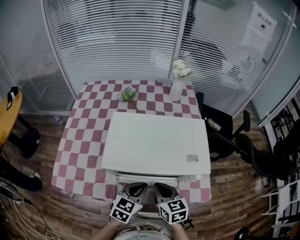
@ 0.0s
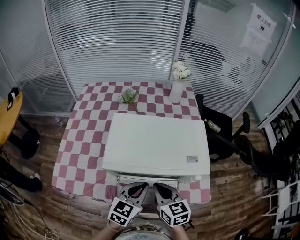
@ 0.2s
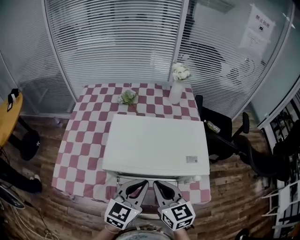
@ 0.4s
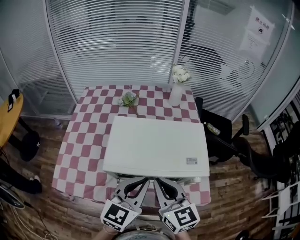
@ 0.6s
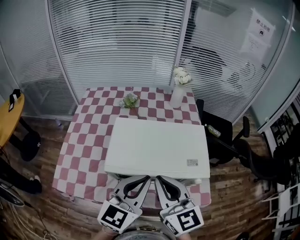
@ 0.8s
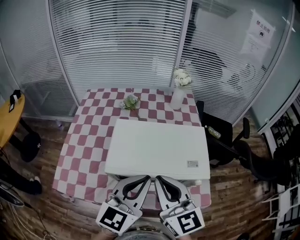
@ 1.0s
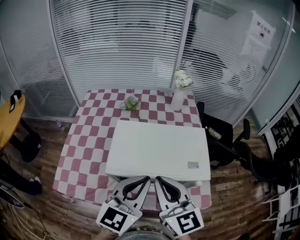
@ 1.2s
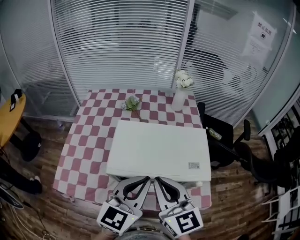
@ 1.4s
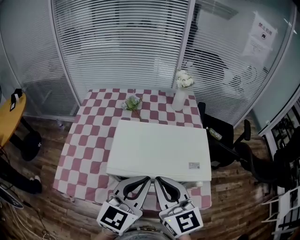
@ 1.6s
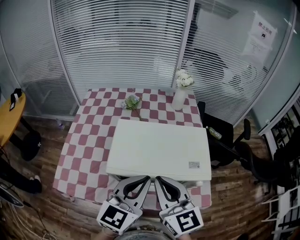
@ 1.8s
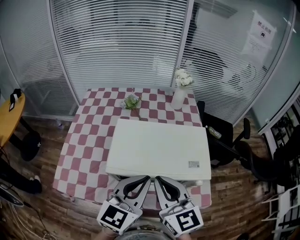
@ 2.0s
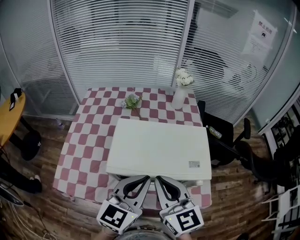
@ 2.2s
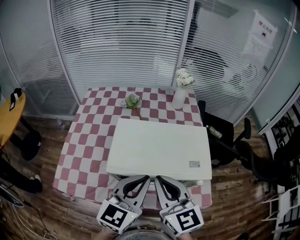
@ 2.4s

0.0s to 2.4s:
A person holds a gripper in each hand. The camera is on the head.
0.0s to 1.2s: Both grippers move upward, about 20 cm. The left gripper changes its angle by some 20 degrees. Meanwhile the right gripper rotates some 30 degrees.
1.2s to 2.4s: The grippers make only small movements.

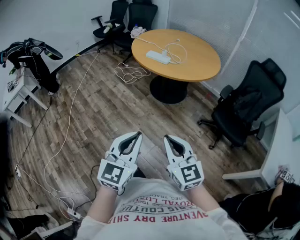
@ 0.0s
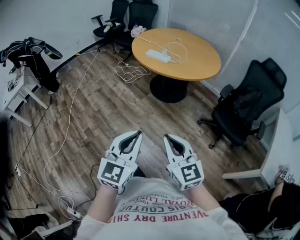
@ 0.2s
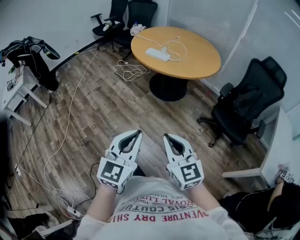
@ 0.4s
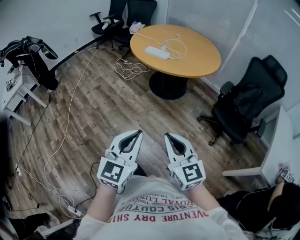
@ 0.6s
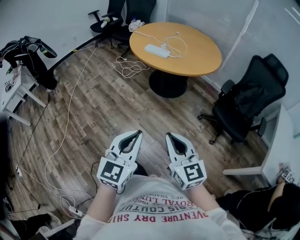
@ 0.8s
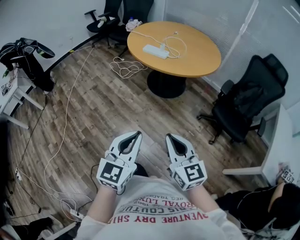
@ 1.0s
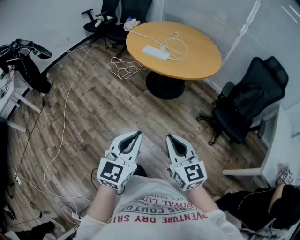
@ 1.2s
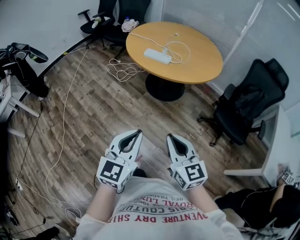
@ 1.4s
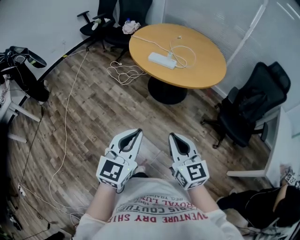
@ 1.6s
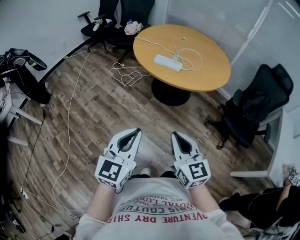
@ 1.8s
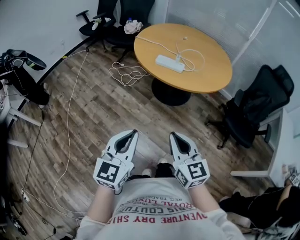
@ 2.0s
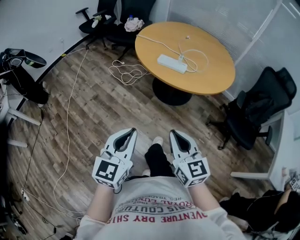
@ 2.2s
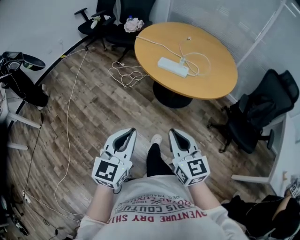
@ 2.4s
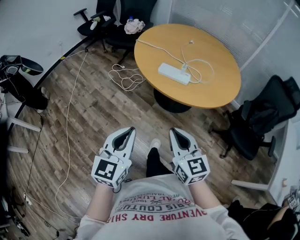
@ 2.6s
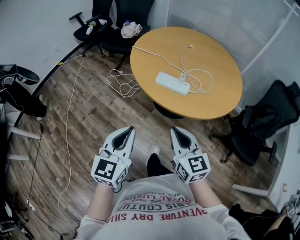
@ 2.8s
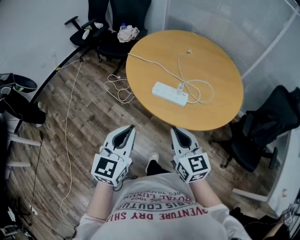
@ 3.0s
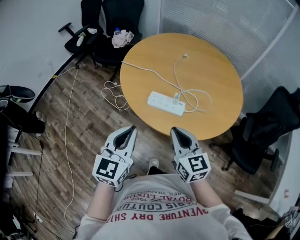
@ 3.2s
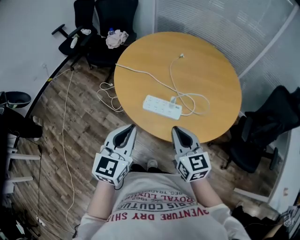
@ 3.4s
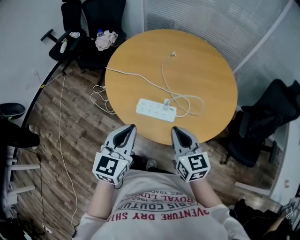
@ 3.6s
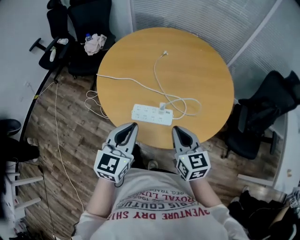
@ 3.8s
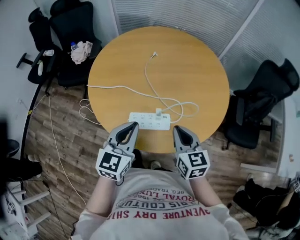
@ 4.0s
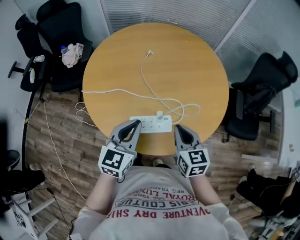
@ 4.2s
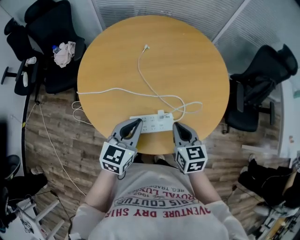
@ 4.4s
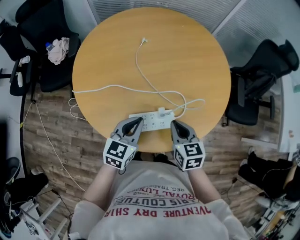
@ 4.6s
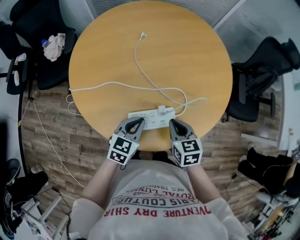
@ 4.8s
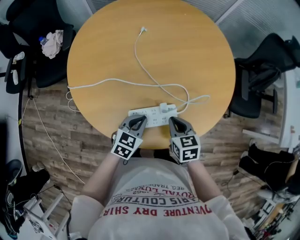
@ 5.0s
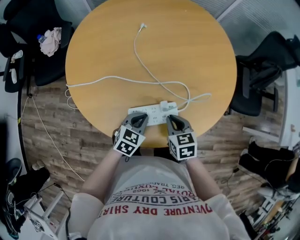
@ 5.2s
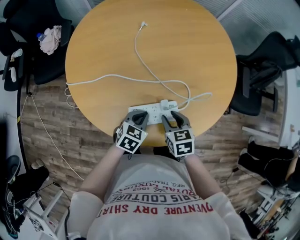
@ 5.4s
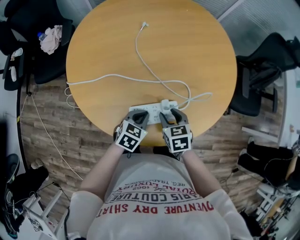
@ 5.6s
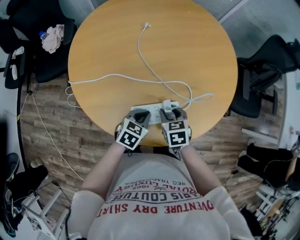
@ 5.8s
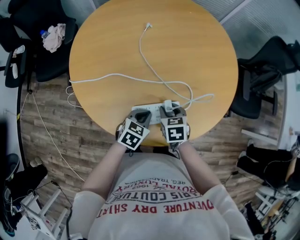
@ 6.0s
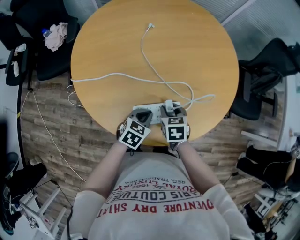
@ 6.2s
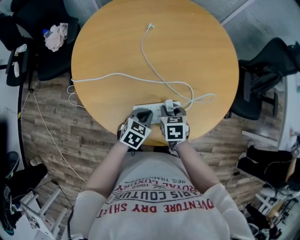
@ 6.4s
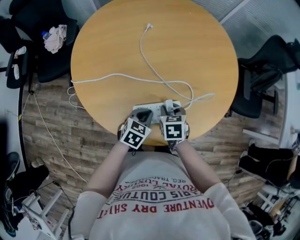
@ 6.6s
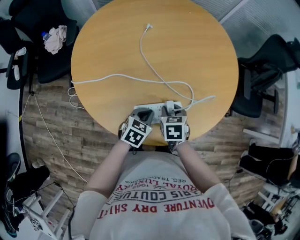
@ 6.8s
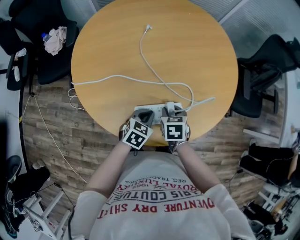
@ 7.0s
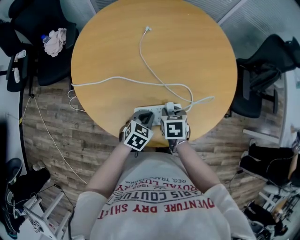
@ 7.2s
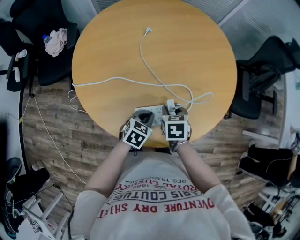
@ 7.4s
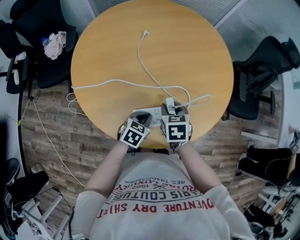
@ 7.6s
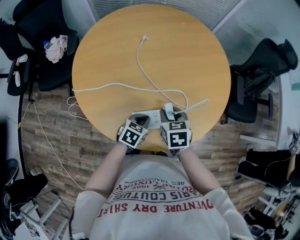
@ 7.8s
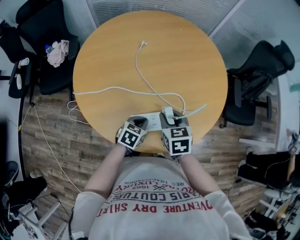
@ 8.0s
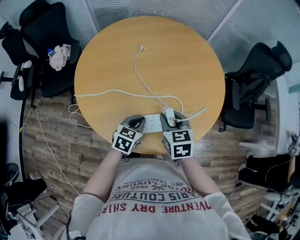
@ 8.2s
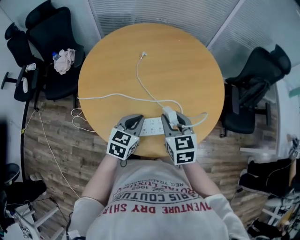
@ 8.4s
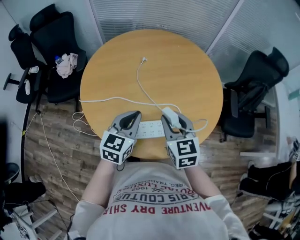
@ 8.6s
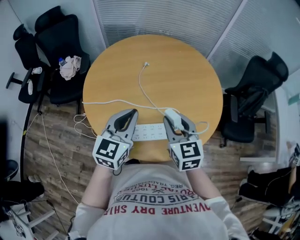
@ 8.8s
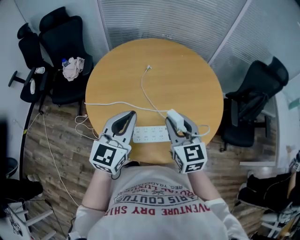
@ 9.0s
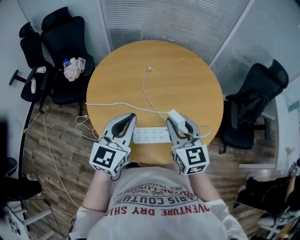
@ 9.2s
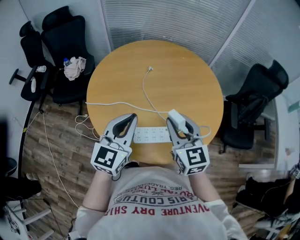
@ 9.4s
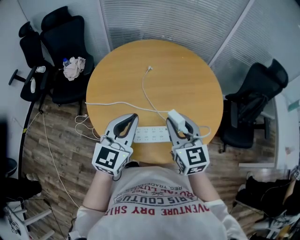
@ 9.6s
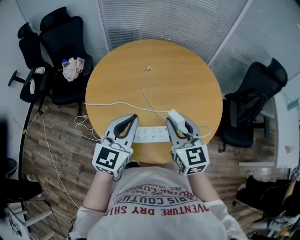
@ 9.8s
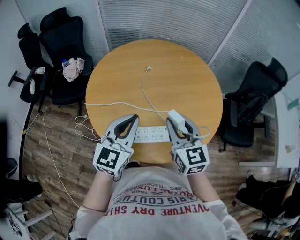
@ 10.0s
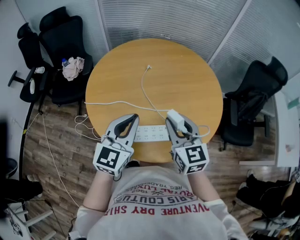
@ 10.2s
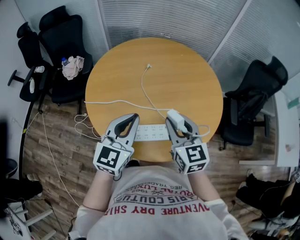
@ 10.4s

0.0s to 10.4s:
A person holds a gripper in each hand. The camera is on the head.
0.0s to 1.4s: The two grippers go about 15 cm forward and to the left.
1.4s to 3.0s: The two grippers travel together, forward, roughly 40 cm.
3.0s to 4.4s: The right gripper shifts by about 25 cm, and changes its angle by roughly 40 degrees, while the left gripper shifts by about 35 cm, and turns by about 40 degrees.
4.4s to 6.0s: Both grippers move downward, roughly 15 cm. The left gripper swivels about 30 degrees, while the right gripper swivels some 20 degrees, and opens up.
6.0s to 7.4s: The grippers move only a little.
7.4s to 9.0s: The two grippers go roughly 30 cm upward. The left gripper angles its fingers upward, by roughly 40 degrees; the right gripper tips its fingers upward by roughly 40 degrees.
9.0s to 10.4s: The grippers move only a little.

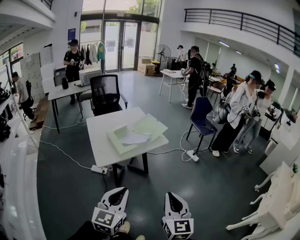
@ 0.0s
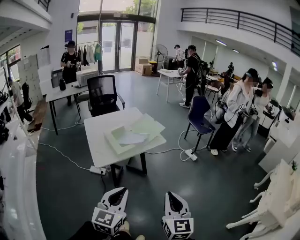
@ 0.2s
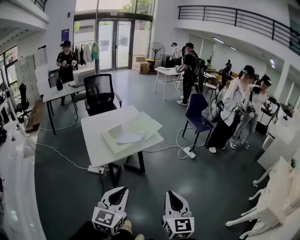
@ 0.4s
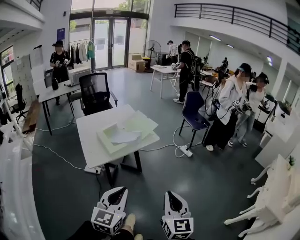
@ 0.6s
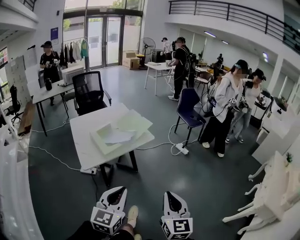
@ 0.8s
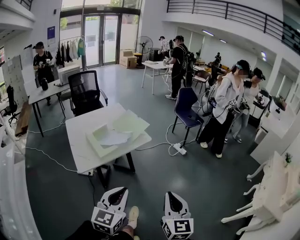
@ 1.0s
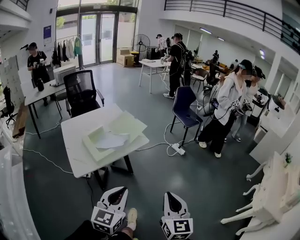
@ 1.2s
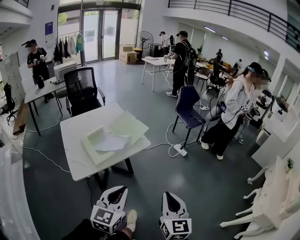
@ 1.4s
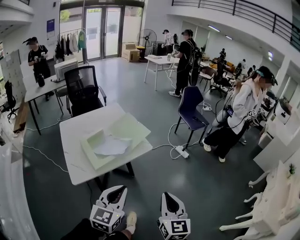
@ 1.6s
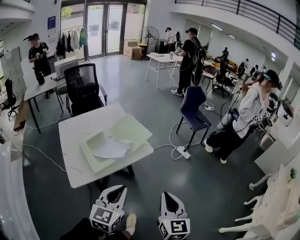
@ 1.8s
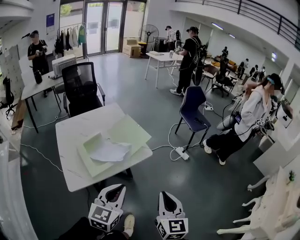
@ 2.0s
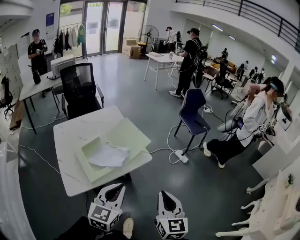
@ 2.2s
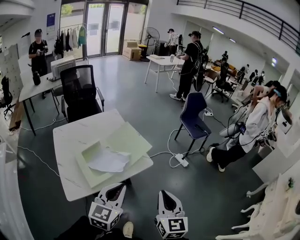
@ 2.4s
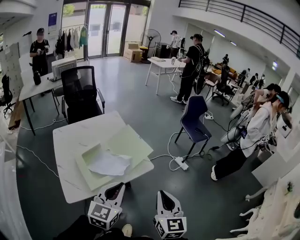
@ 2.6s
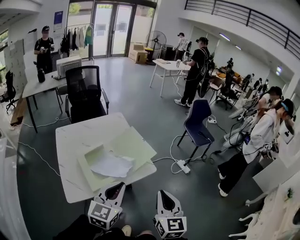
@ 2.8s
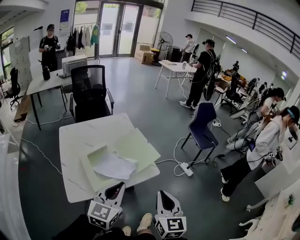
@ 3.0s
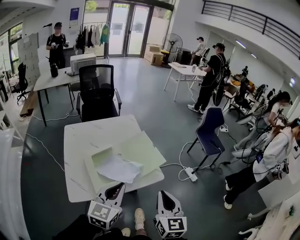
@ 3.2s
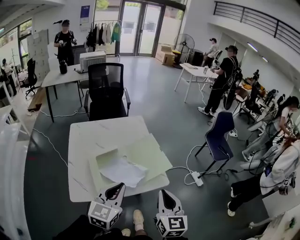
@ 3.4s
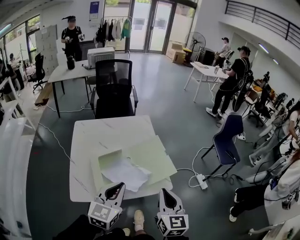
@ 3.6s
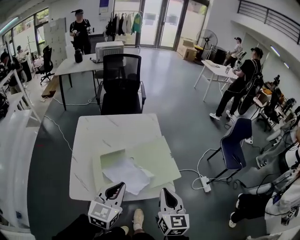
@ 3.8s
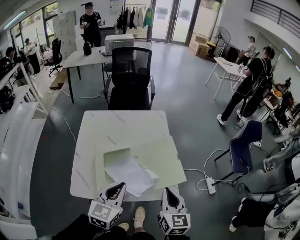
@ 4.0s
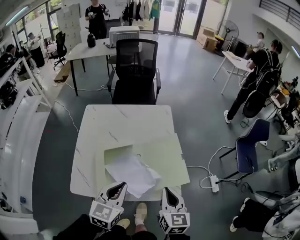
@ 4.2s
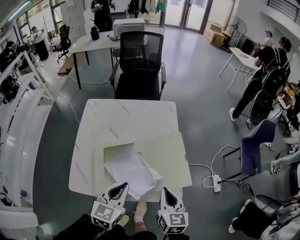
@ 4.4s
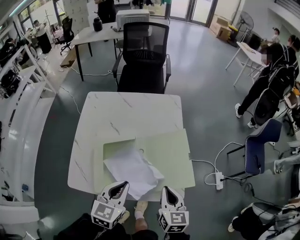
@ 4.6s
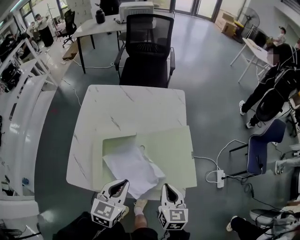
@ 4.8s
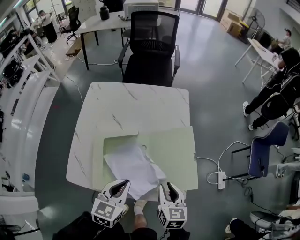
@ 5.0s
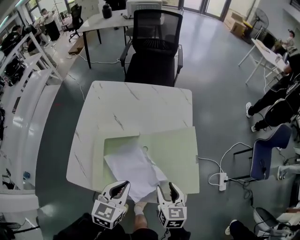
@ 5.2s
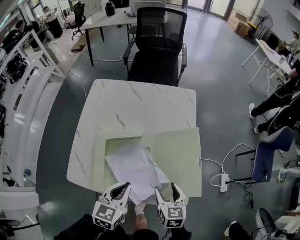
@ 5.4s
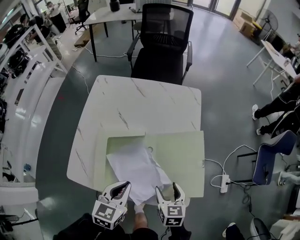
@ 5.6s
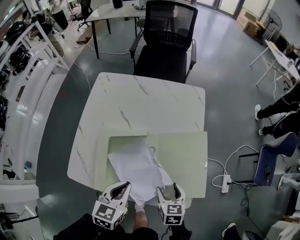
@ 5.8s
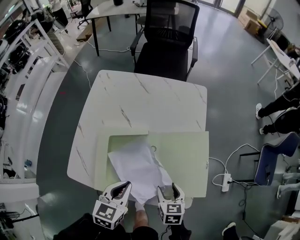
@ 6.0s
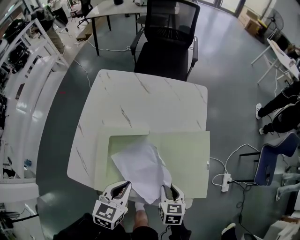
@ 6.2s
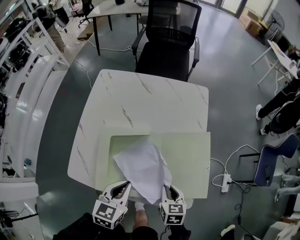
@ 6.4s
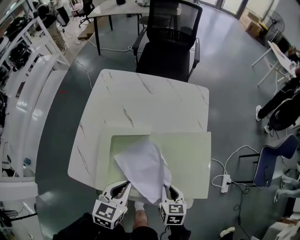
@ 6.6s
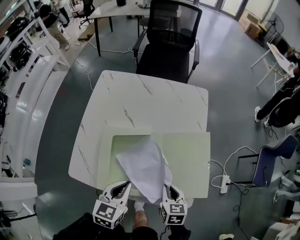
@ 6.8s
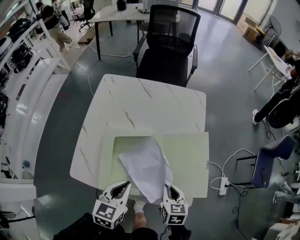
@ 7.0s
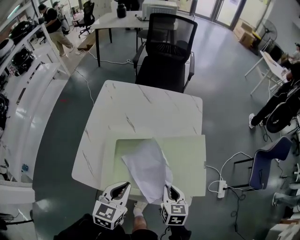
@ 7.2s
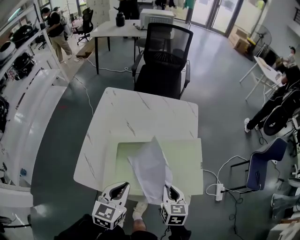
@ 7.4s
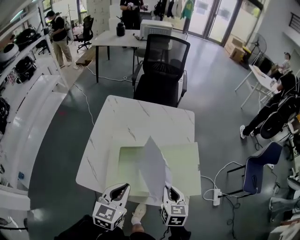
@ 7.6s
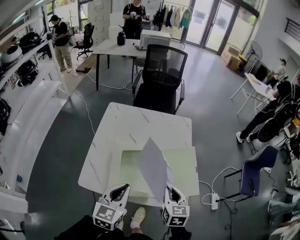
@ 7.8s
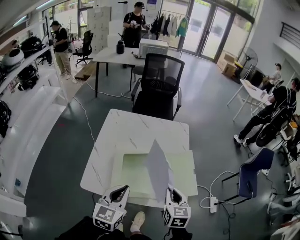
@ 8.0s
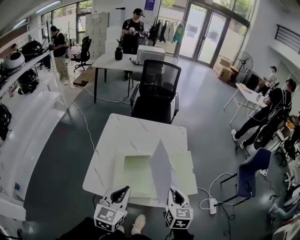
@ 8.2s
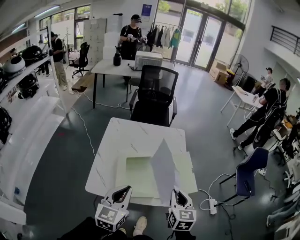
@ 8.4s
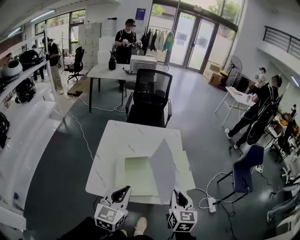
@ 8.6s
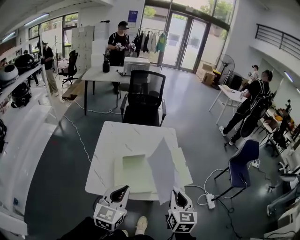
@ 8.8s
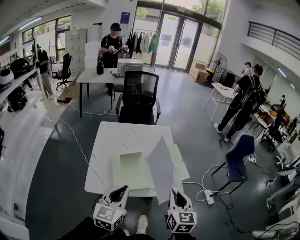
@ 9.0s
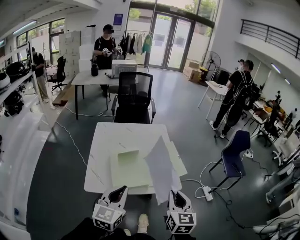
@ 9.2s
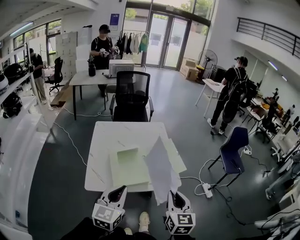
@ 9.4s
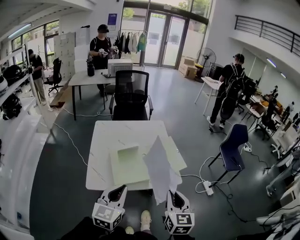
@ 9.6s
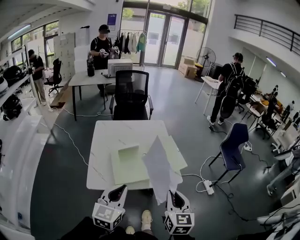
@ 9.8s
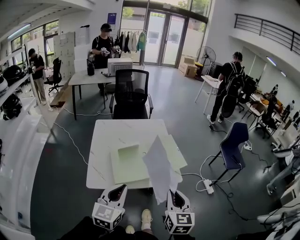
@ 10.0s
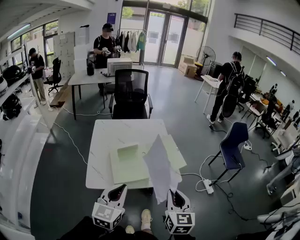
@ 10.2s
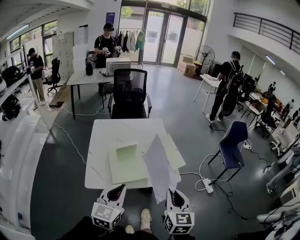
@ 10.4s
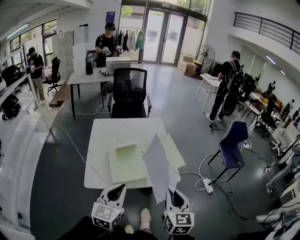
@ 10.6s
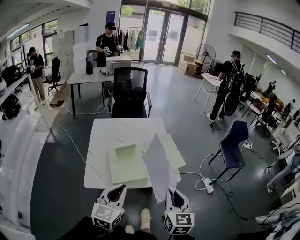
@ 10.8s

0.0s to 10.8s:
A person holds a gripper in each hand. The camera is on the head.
0.0s to 1.6s: Both grippers travel together forward, about 30 cm.
1.6s to 3.0s: The grippers both shift forward and to the left by roughly 25 cm.
3.0s to 4.6s: The right gripper ends up about 40 cm from where it was, and rotates about 30 degrees, while the left gripper moves about 35 cm, and rotates approximately 30 degrees.
4.6s to 6.2s: The right gripper travels downward by roughly 15 cm, turns by about 20 degrees, and opens its fingers. Meanwhile the left gripper moves downward, some 10 cm.
6.2s to 7.8s: The left gripper shifts about 20 cm upward and backward, while the right gripper heads upward, covering roughly 20 cm.
7.8s to 9.2s: Both grippers move backward and upward, roughly 30 cm. The right gripper turns by approximately 20 degrees.
9.2s to 10.8s: The grippers stay close to where they were, moving slightly.
